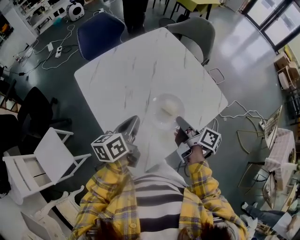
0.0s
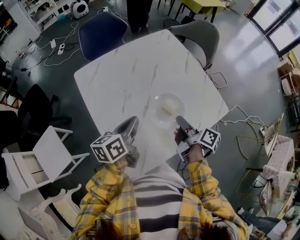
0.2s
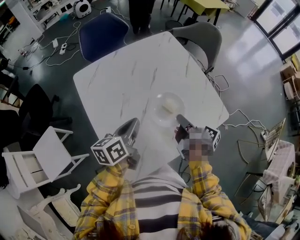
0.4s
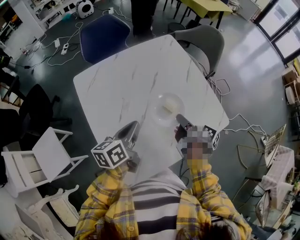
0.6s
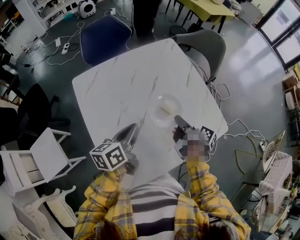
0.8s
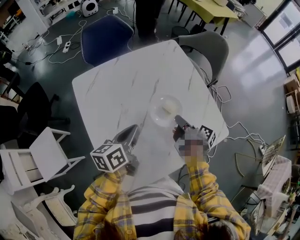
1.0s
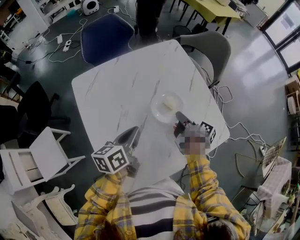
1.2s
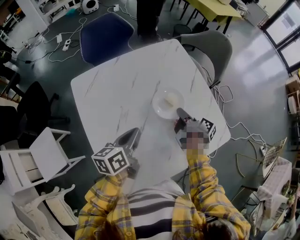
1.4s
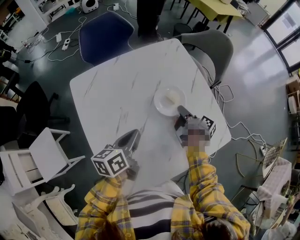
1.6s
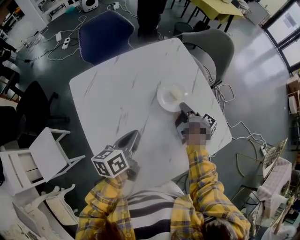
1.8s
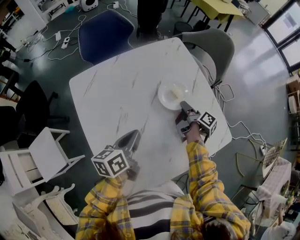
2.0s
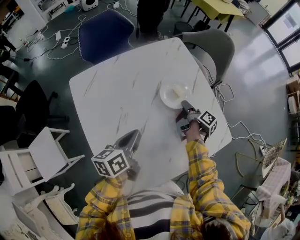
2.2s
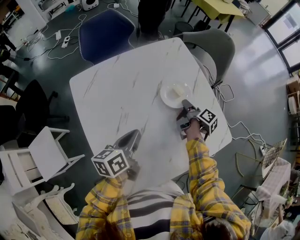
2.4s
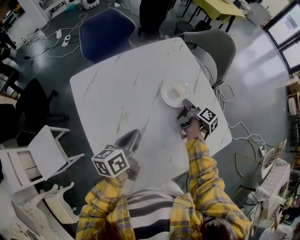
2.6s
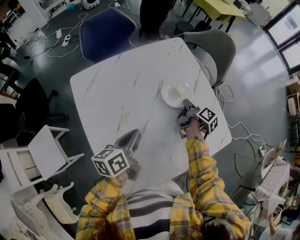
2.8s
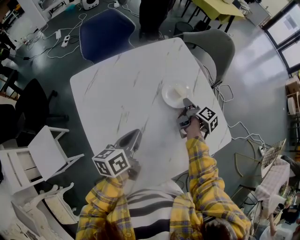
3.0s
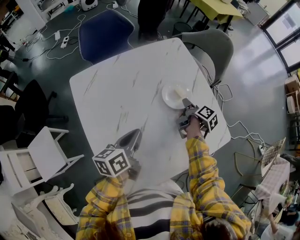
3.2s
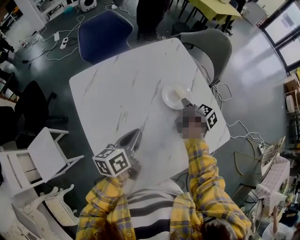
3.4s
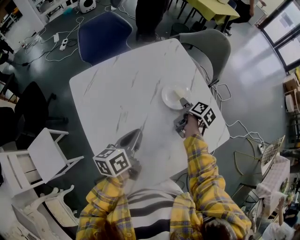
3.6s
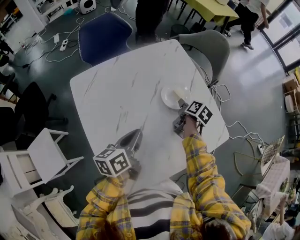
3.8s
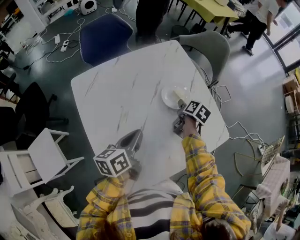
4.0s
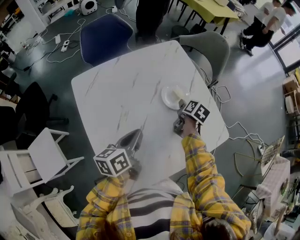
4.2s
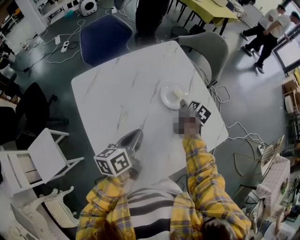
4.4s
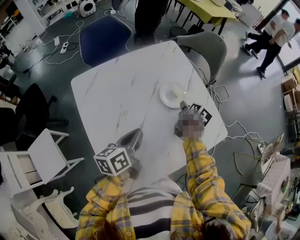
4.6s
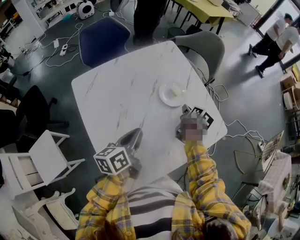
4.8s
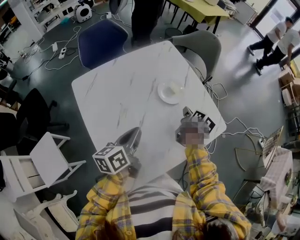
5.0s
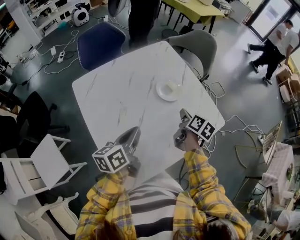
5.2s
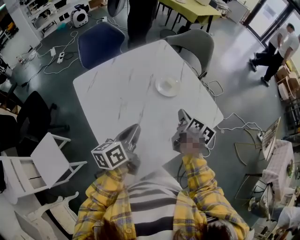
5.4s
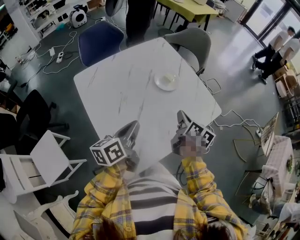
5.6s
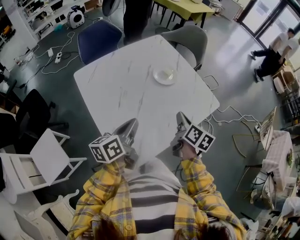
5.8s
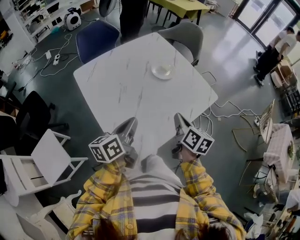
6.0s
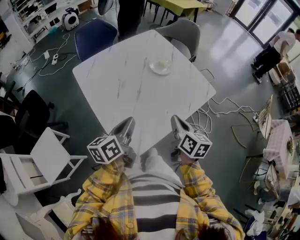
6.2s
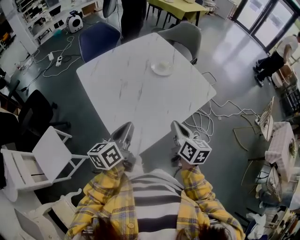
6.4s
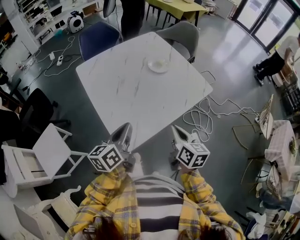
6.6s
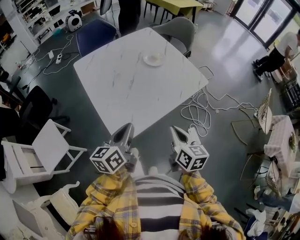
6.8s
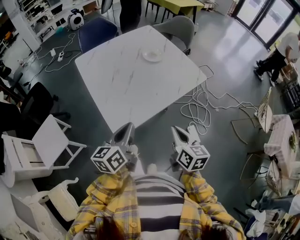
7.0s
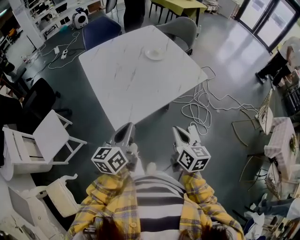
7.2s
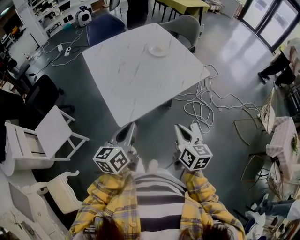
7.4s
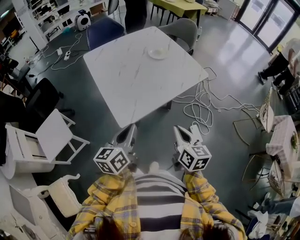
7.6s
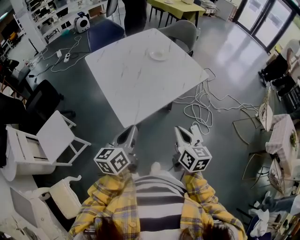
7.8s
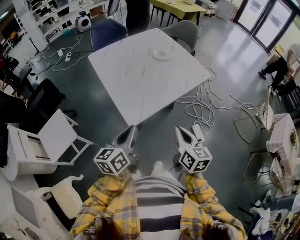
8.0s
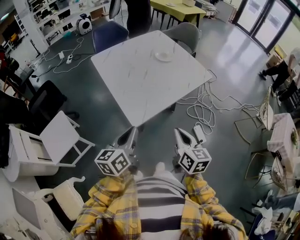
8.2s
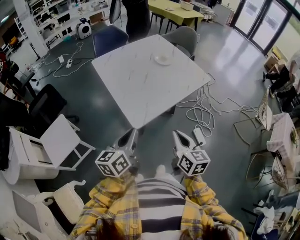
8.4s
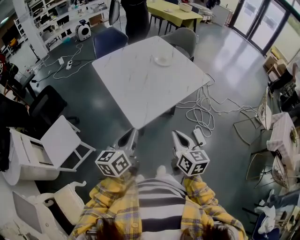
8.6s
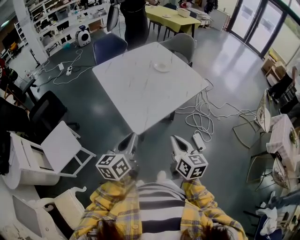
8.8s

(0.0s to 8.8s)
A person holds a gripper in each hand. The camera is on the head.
0.0s - 1.4s: The left gripper travels forward by about 10 cm, while the right gripper shifts about 20 cm forward and downward.
1.4s - 3.0s: The right gripper shifts approximately 5 cm forward.
3.0s - 4.4s: The right gripper swivels some 40 degrees, and opens its fingers.
4.4s - 5.8s: The right gripper is displaced backward and upward by roughly 25 cm, swivels about 20 degrees, and closes, while the left gripper moves backward, some 10 cm.
5.8s - 7.4s: The grippers both shift backward by some 25 cm. The right gripper swivels approximately 20 degrees.
7.4s - 8.8s: The right gripper travels to the left and backward by approximately 10 cm, while the left gripper is displaced to the left by about 10 cm.

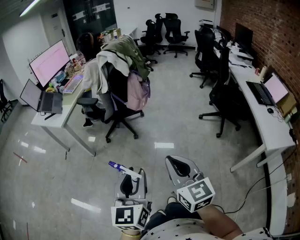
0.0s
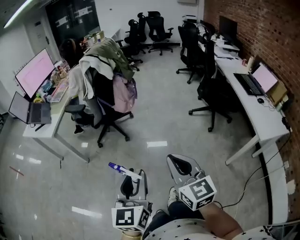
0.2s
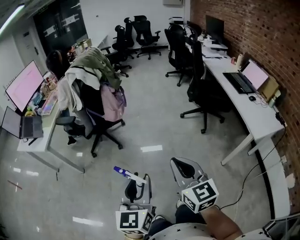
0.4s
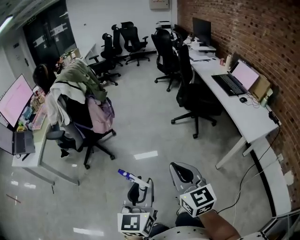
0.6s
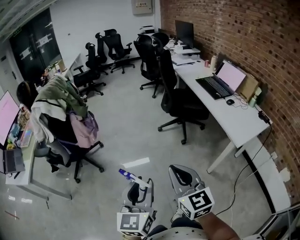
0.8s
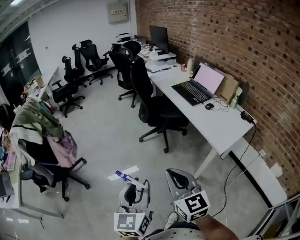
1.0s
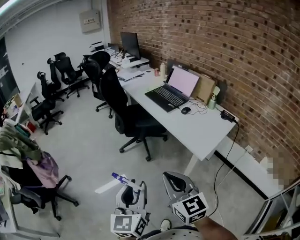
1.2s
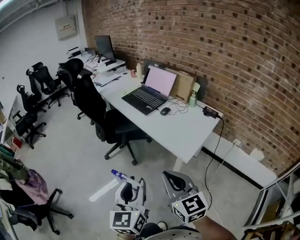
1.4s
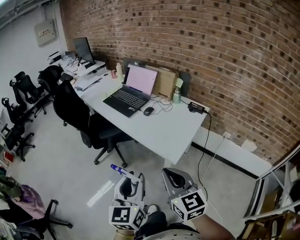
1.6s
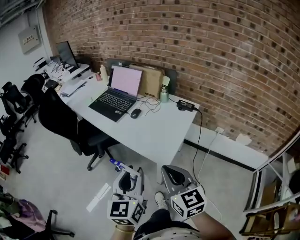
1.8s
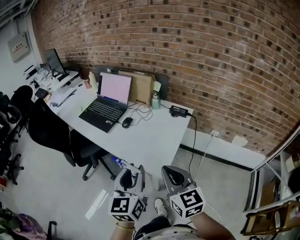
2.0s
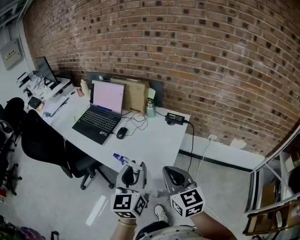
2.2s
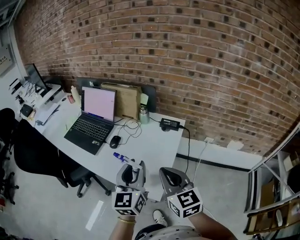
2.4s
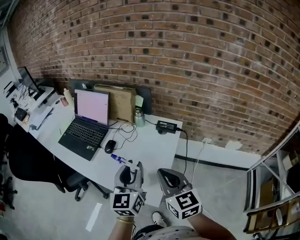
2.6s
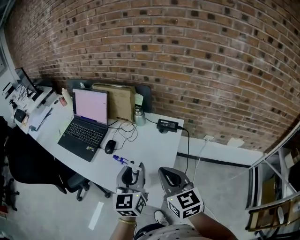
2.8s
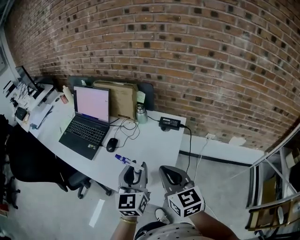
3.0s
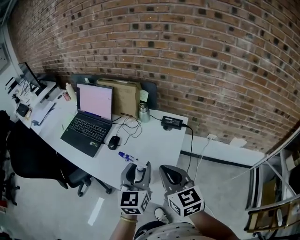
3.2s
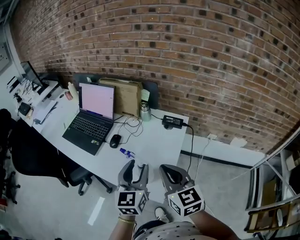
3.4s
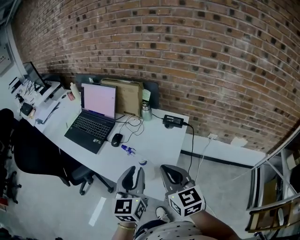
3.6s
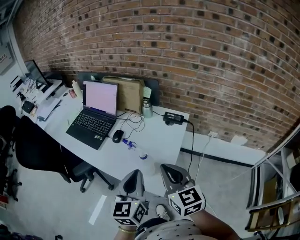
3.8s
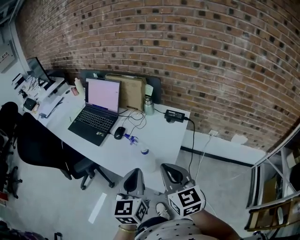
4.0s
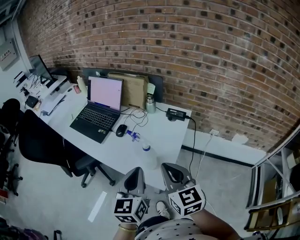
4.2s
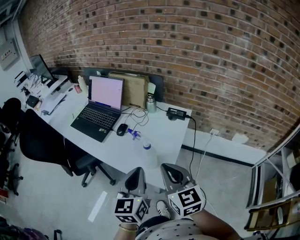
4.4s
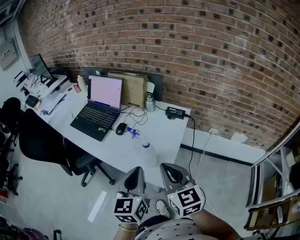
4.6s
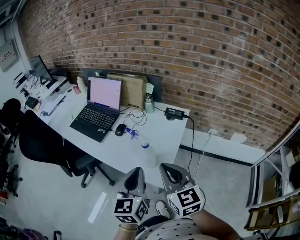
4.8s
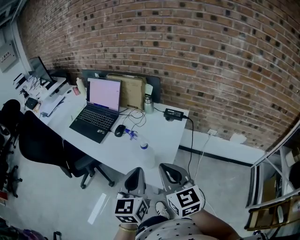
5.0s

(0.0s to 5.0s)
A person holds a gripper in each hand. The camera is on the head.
0.0s - 1.6s: The two grippers travel together, about 70 cm. The left gripper turns by roughly 60 degrees. Meanwhile the right gripper changes its angle by roughly 50 degrees.
1.6s - 3.4s: The two grippers go approximately 30 cm forward.
3.4s - 5.0s: The two grippers go about 10 cm backward. The left gripper closes.

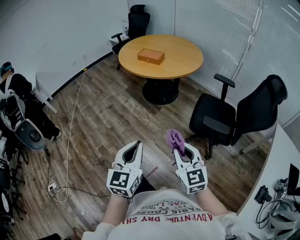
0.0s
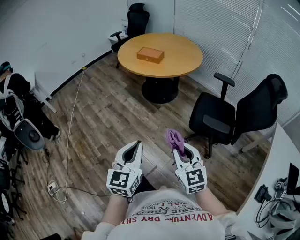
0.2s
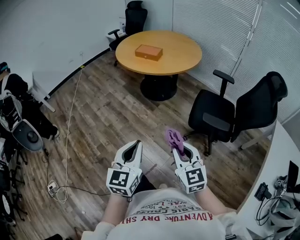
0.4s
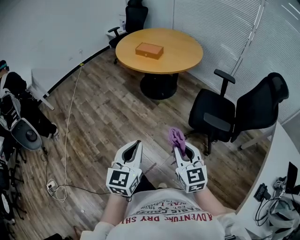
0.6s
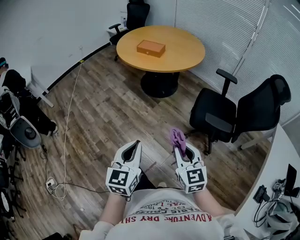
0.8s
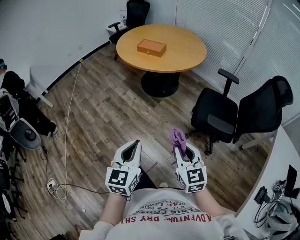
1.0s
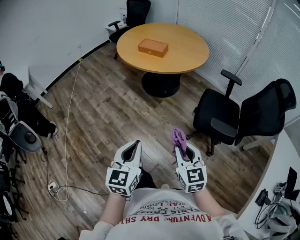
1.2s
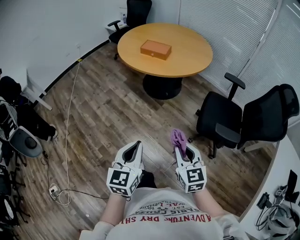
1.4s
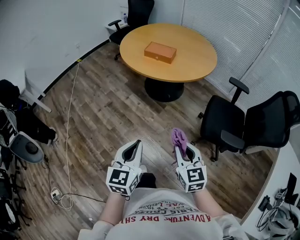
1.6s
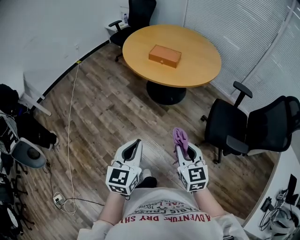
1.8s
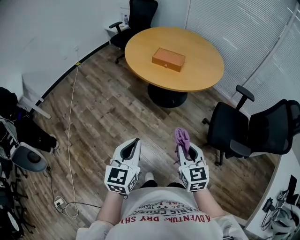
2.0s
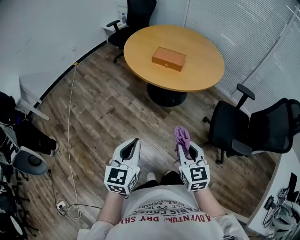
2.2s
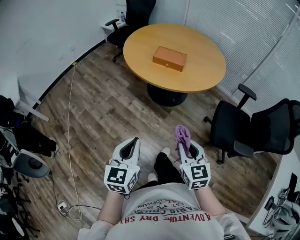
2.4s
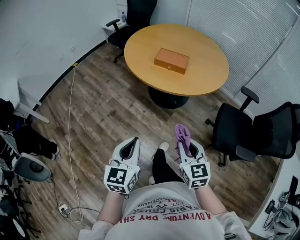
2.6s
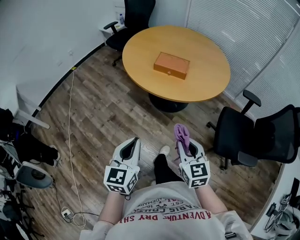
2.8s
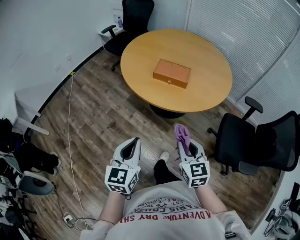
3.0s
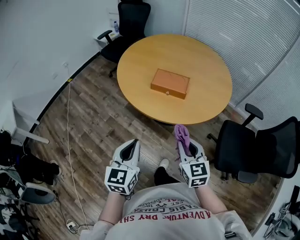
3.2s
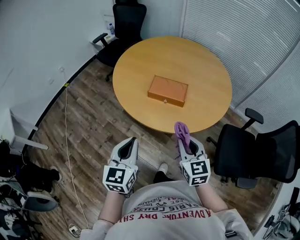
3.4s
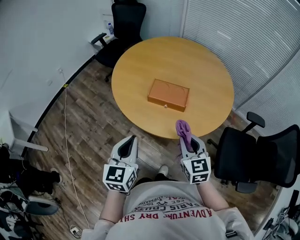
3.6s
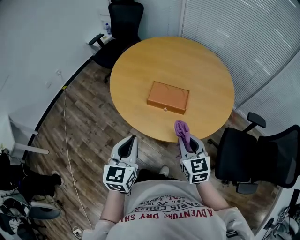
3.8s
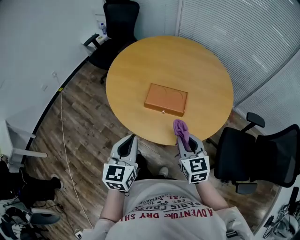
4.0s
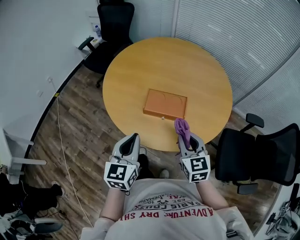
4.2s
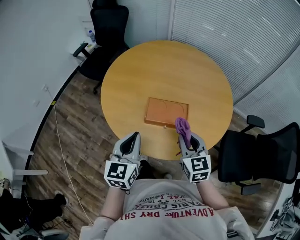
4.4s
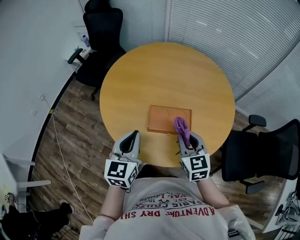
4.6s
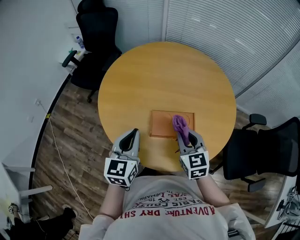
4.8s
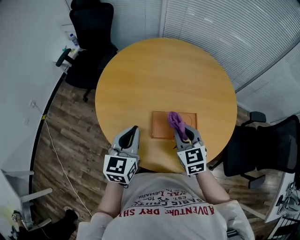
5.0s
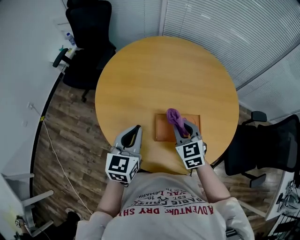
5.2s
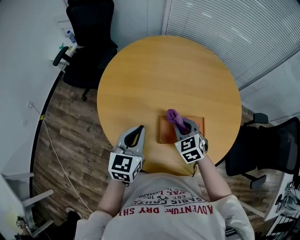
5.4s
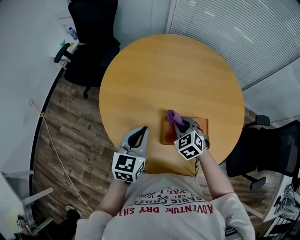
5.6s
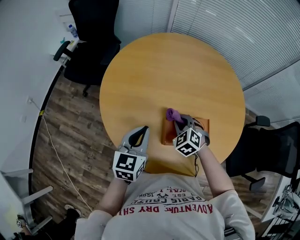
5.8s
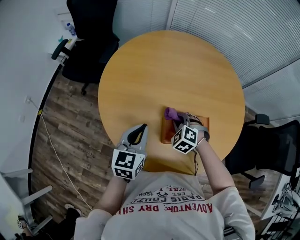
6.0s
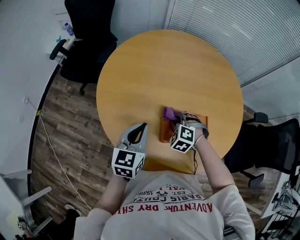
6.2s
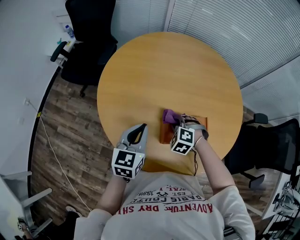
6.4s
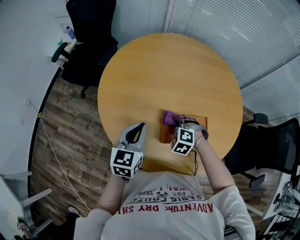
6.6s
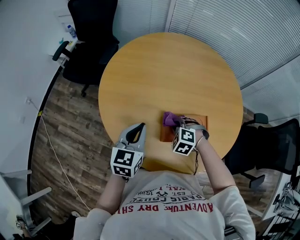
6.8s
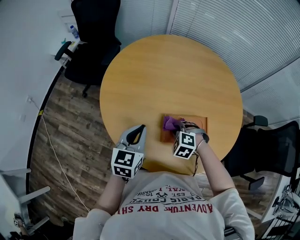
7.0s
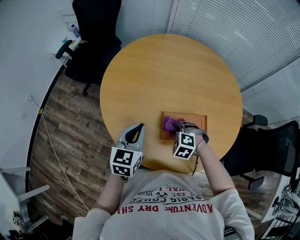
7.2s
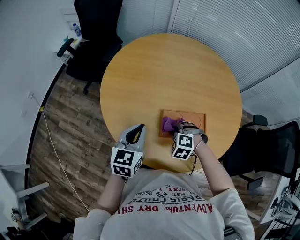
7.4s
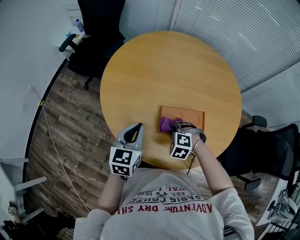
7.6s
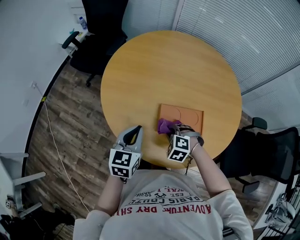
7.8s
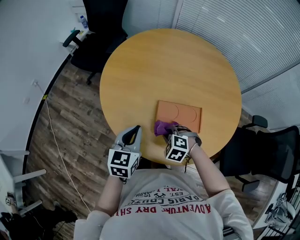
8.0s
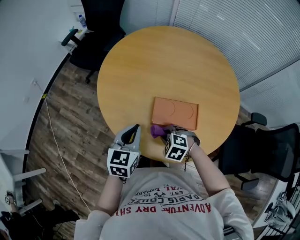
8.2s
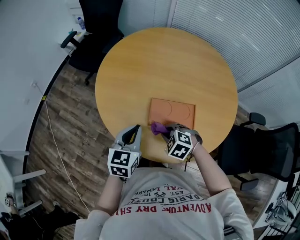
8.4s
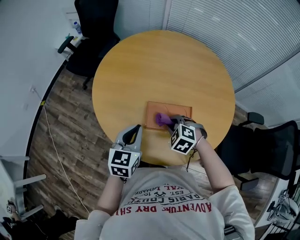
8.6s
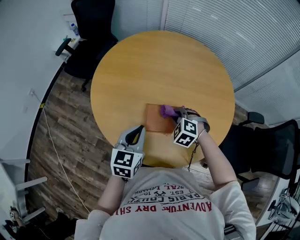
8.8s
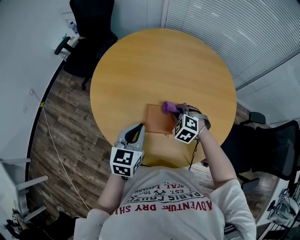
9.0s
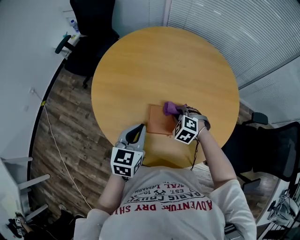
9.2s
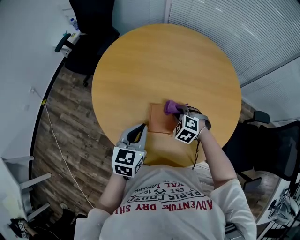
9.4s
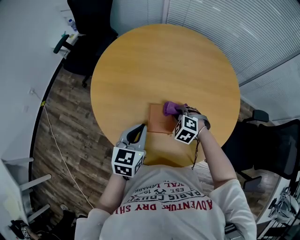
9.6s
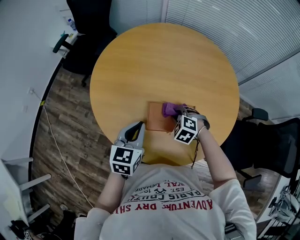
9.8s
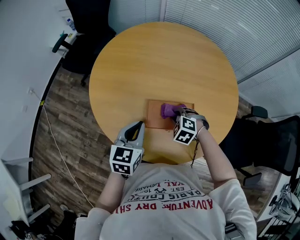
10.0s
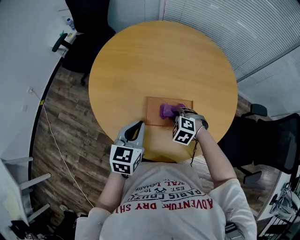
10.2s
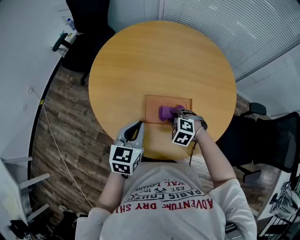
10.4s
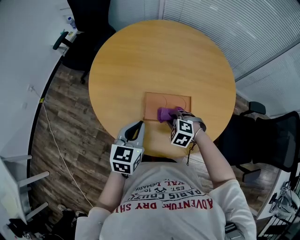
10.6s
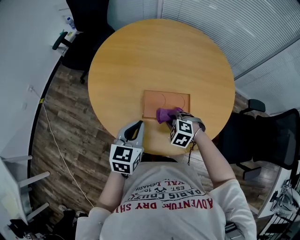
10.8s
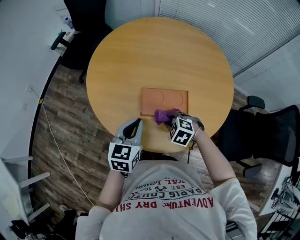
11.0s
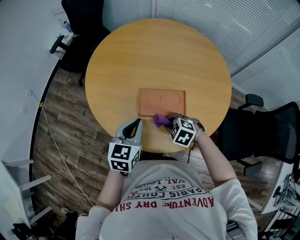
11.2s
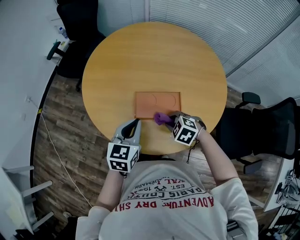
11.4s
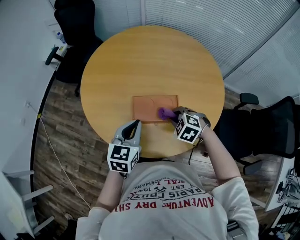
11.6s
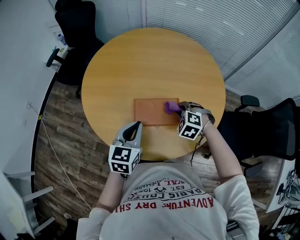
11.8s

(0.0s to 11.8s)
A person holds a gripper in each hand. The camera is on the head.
0.0s - 1.4s: The grippers both shift forward and to the left by some 15 cm.
1.4s - 3.0s: The grippers both shift forward and to the left by approximately 40 cm.
3.0s - 4.4s: Both grippers travel together forward, about 35 cm.
4.4s - 6.0s: The right gripper heads forward, downward and to the left, covering approximately 30 cm, and tips its fingers downward by about 30 degrees. The left gripper shifts about 25 cm forward, to the left and downward.
6.0s - 7.4s: The right gripper is displaced backward by about 10 cm.
7.4s - 8.8s: Both grippers travel together to the right, some 10 cm. The right gripper reaches some 10 cm backward, then returns.
8.8s - 10.4s: The right gripper moves approximately 5 cm.
10.4s - 11.8s: The right gripper shifts roughly 10 cm to the right and upward.
